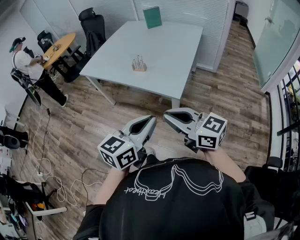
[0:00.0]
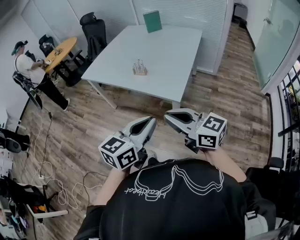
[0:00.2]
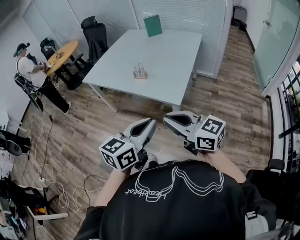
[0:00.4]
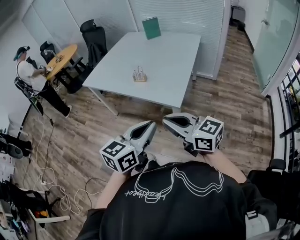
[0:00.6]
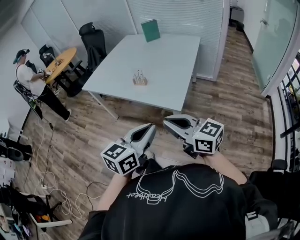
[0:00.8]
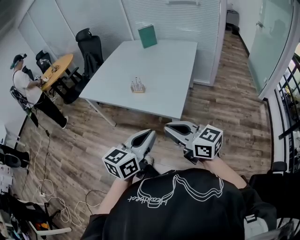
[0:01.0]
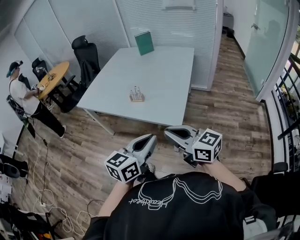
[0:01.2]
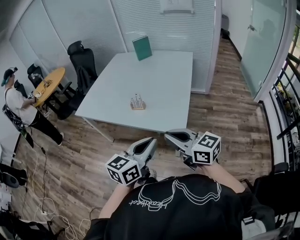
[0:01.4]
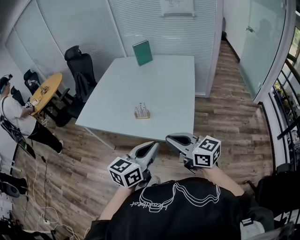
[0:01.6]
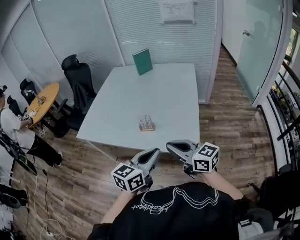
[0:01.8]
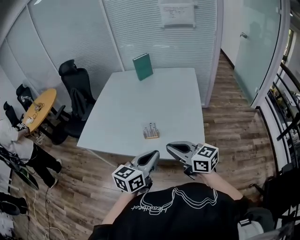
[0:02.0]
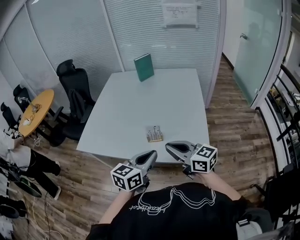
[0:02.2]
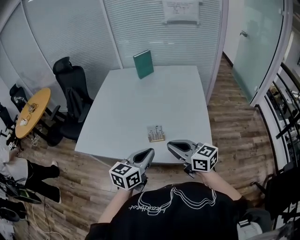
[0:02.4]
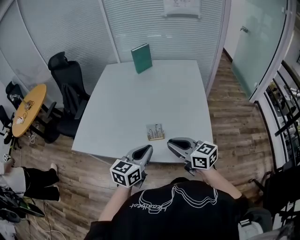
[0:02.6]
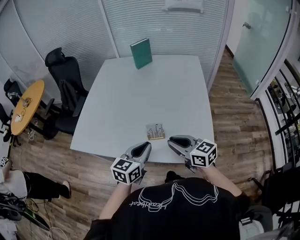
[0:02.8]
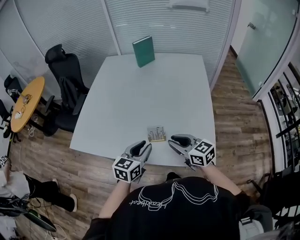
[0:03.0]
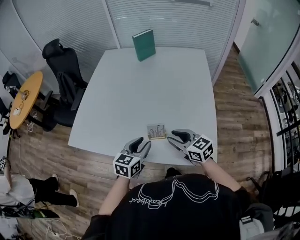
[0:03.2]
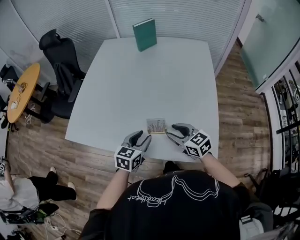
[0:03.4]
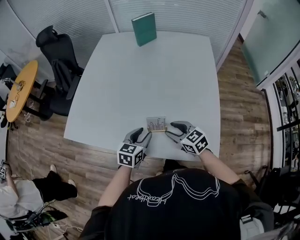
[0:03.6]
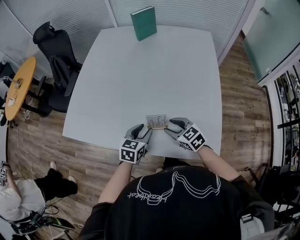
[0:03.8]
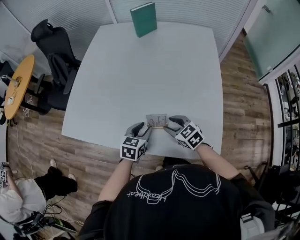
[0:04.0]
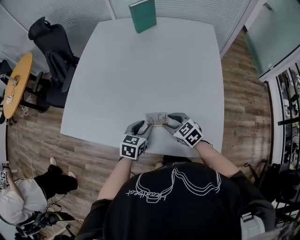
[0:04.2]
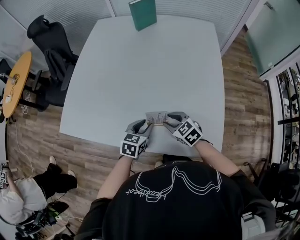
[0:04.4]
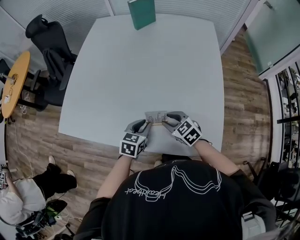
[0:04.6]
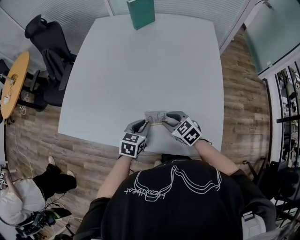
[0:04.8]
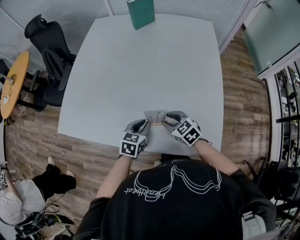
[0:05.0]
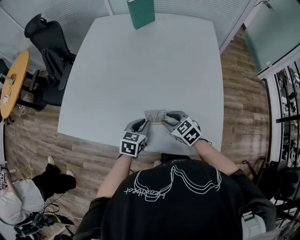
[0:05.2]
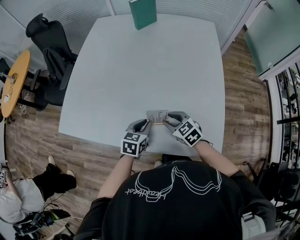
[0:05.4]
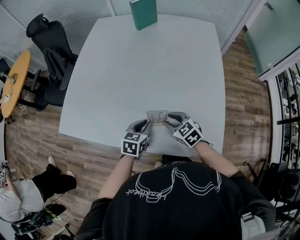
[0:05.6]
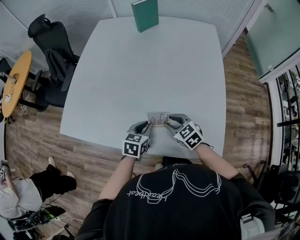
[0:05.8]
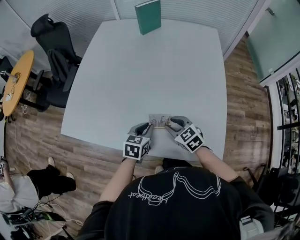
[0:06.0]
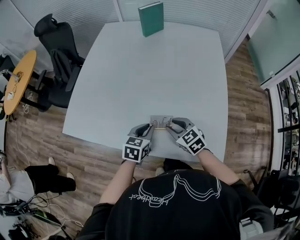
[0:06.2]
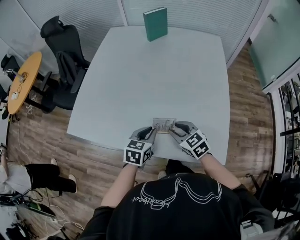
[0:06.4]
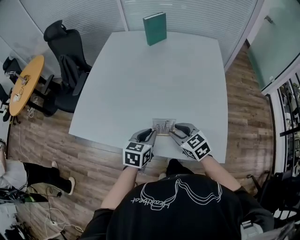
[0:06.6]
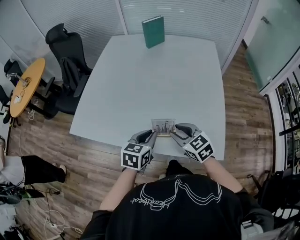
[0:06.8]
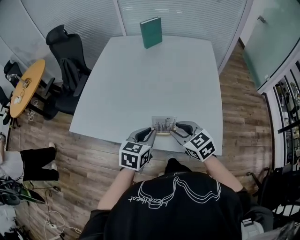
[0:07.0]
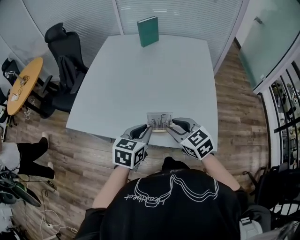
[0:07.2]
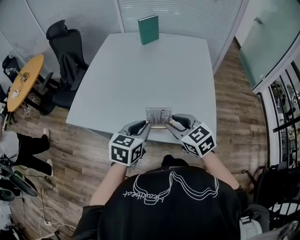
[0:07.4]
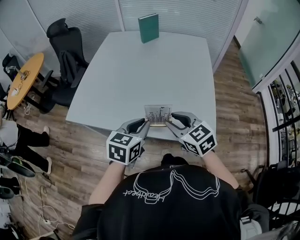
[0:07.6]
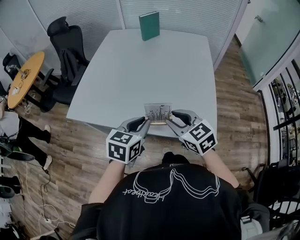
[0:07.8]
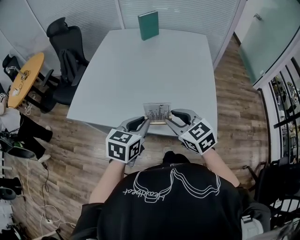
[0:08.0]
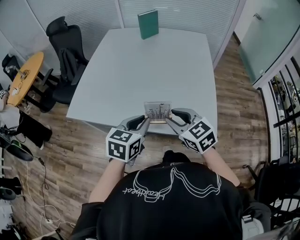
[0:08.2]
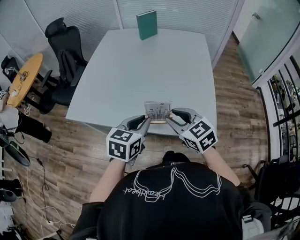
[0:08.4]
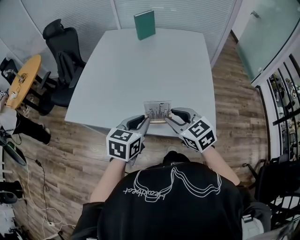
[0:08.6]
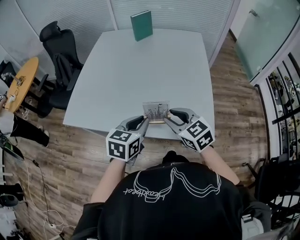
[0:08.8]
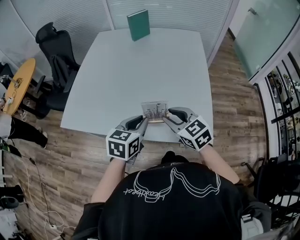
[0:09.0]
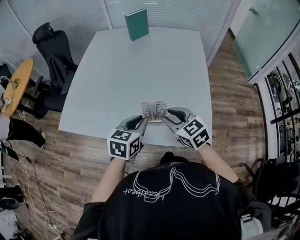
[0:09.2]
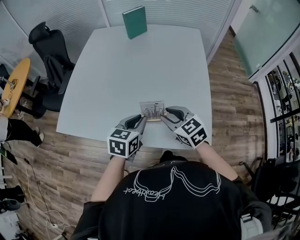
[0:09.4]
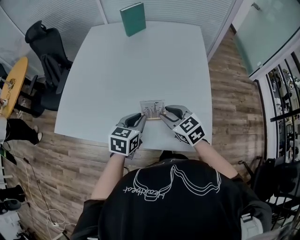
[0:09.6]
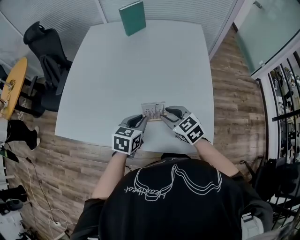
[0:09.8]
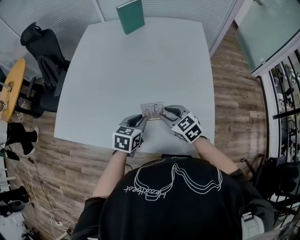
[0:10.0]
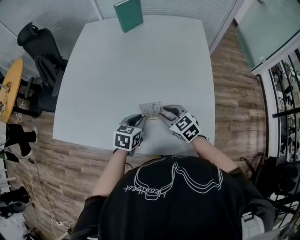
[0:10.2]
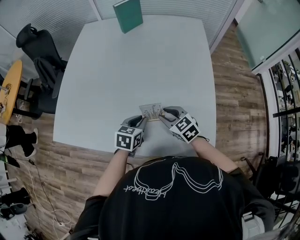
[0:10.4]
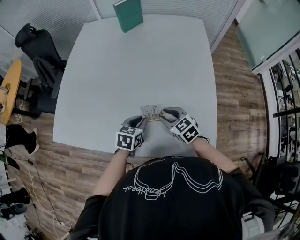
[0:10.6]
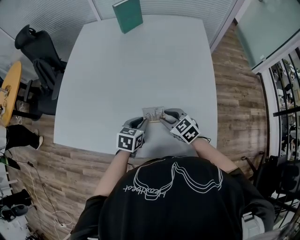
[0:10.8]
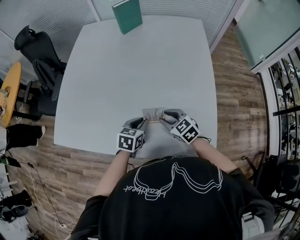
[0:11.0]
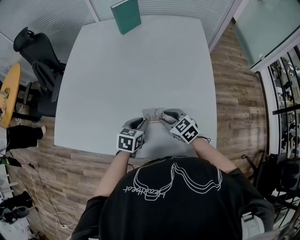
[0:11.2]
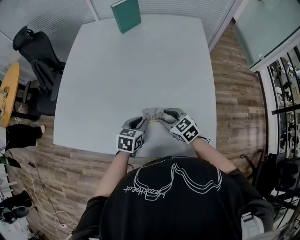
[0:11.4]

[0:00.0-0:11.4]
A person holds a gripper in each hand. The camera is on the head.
0:00.0 to 0:01.4: Both grippers travel together forward, approximately 10 cm.
0:01.4 to 0:02.8: The grippers both shift forward and to the left by some 35 cm.
0:02.8 to 0:04.2: The two grippers go some 20 cm downward and forward. The right gripper turns by about 30 degrees, and opens up. The left gripper changes its angle by approximately 20 degrees, and opens up.
0:04.2 to 0:05.6: The left gripper closes up.
0:05.6 to 0:07.2: The two grippers go some 20 cm upward and backward.
0:07.2 to 0:08.6: The grippers stay close to where they were, moving slightly.
0:08.6 to 0:10.0: Both grippers move forward and downward, approximately 20 cm.
0:10.0 to 0:11.4: The left gripper changes place by some 5 cm. Meanwhile the right gripper moves about 5 cm.

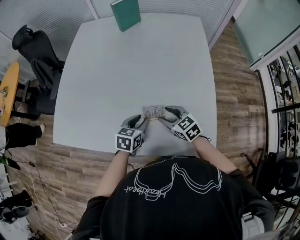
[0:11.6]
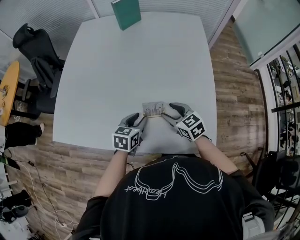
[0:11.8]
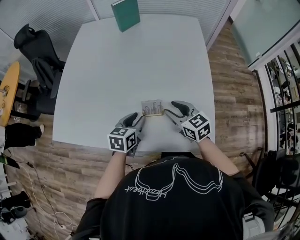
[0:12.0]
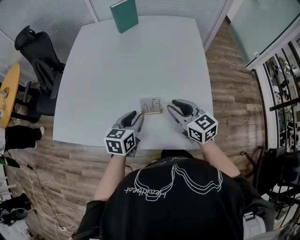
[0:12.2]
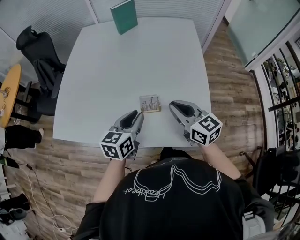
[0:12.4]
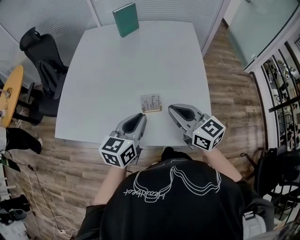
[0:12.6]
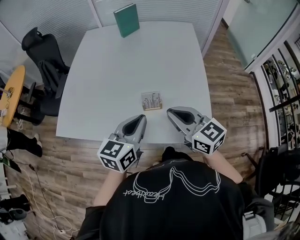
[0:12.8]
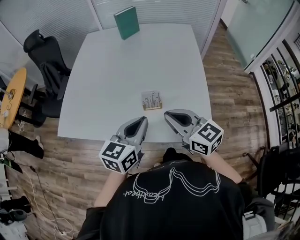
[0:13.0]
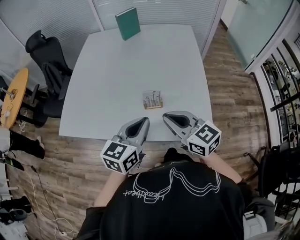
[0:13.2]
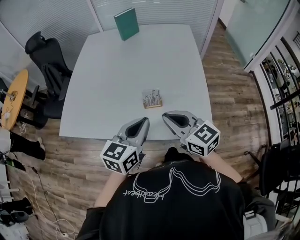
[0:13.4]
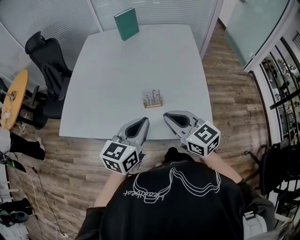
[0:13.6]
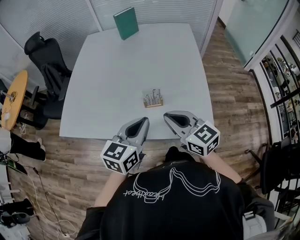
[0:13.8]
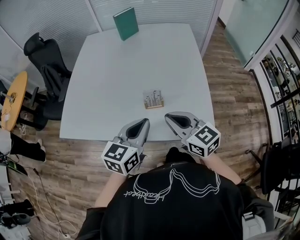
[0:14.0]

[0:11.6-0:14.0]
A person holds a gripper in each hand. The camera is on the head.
0:11.6 to 0:12.8: The grippers both shift upward and backward by about 25 cm. The left gripper swivels about 20 degrees, and closes up, while the right gripper rotates roughly 30 degrees, and closes its fingers.
0:12.8 to 0:14.0: There are only small adjustments of the grippers.

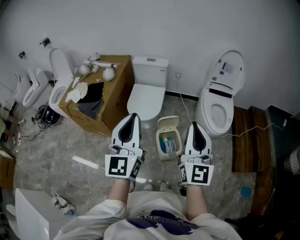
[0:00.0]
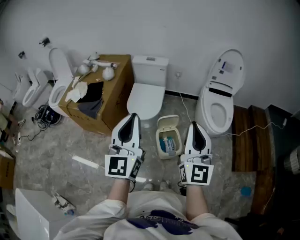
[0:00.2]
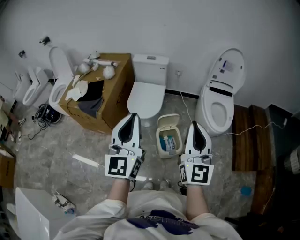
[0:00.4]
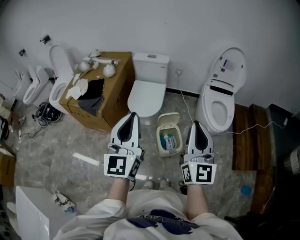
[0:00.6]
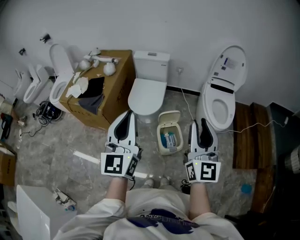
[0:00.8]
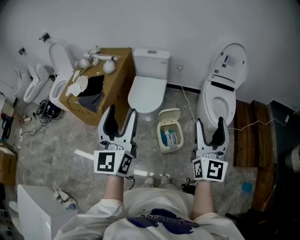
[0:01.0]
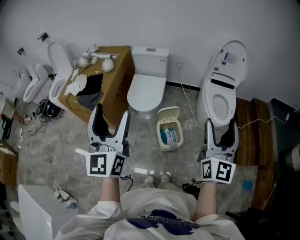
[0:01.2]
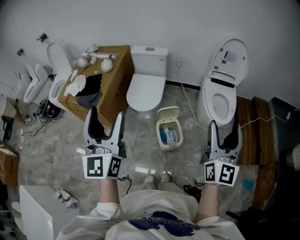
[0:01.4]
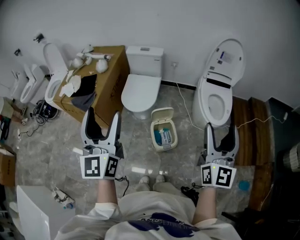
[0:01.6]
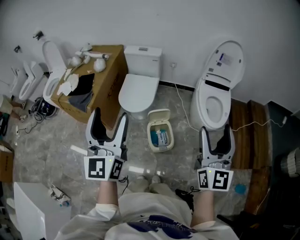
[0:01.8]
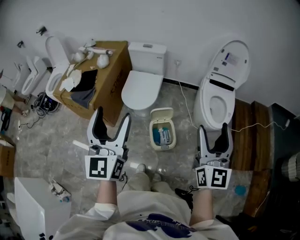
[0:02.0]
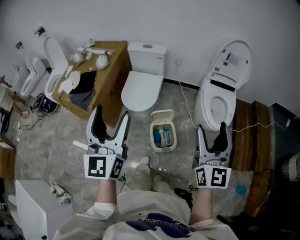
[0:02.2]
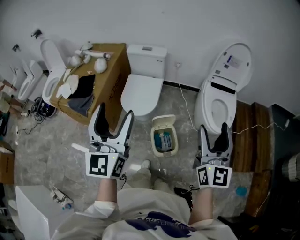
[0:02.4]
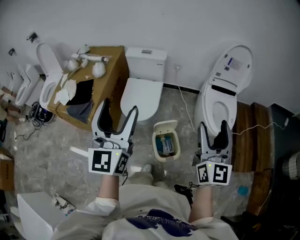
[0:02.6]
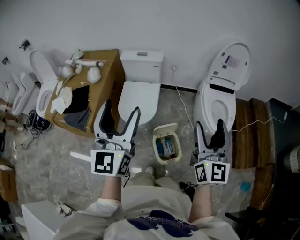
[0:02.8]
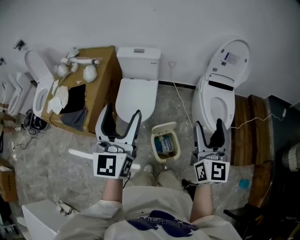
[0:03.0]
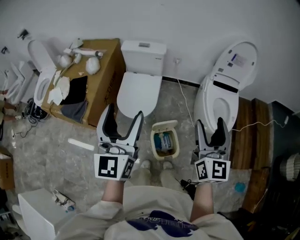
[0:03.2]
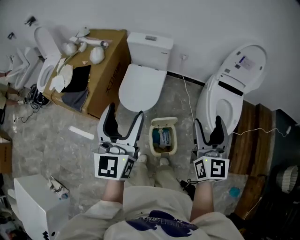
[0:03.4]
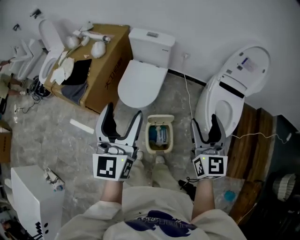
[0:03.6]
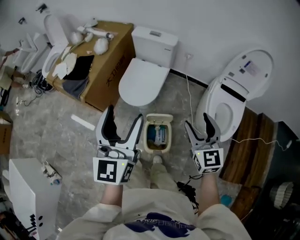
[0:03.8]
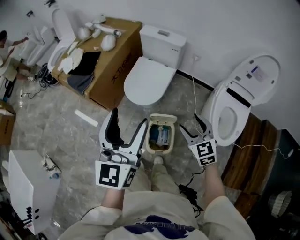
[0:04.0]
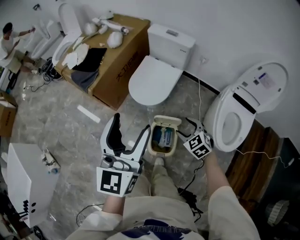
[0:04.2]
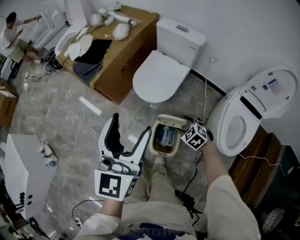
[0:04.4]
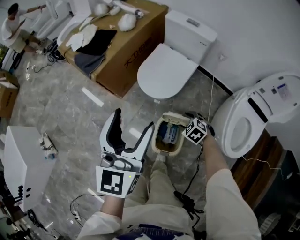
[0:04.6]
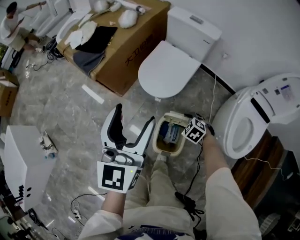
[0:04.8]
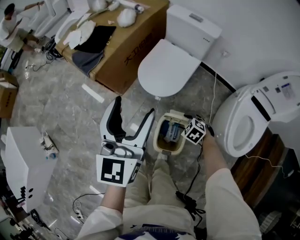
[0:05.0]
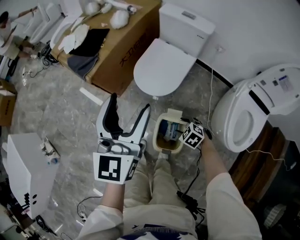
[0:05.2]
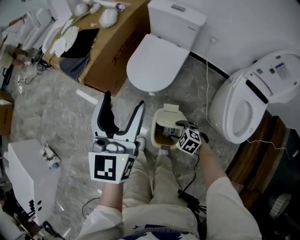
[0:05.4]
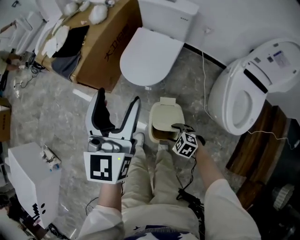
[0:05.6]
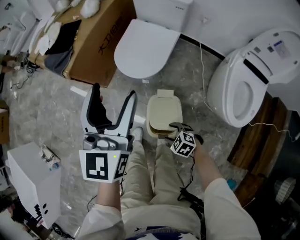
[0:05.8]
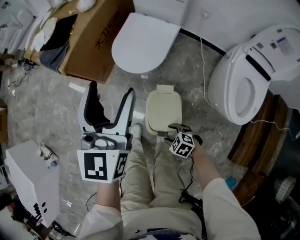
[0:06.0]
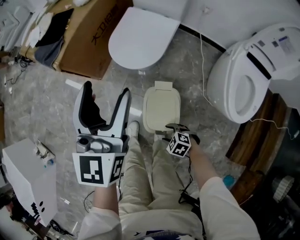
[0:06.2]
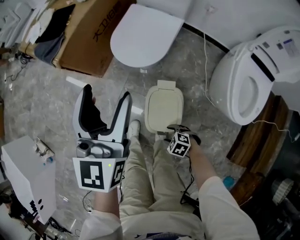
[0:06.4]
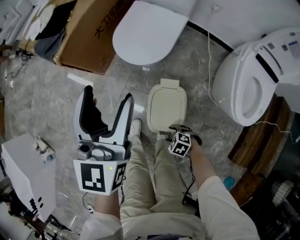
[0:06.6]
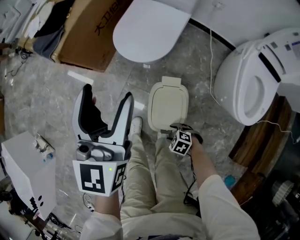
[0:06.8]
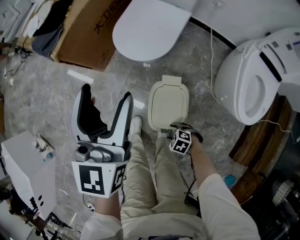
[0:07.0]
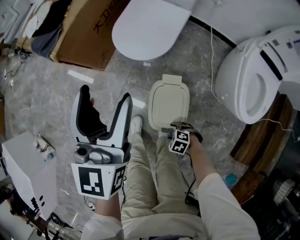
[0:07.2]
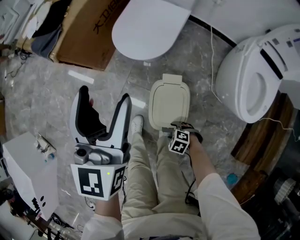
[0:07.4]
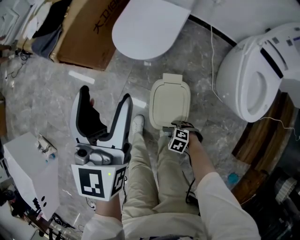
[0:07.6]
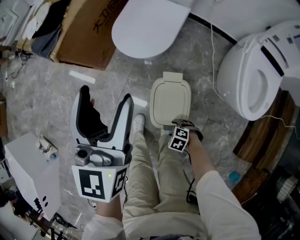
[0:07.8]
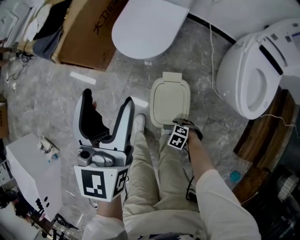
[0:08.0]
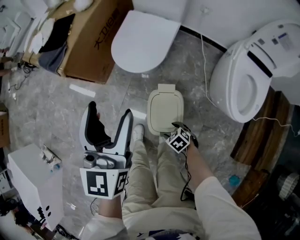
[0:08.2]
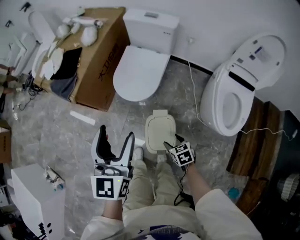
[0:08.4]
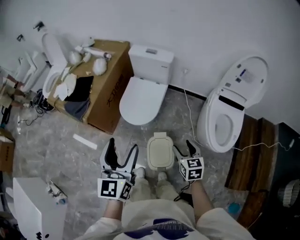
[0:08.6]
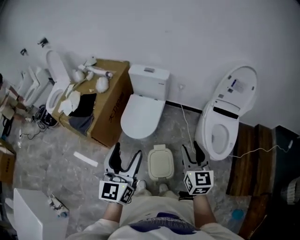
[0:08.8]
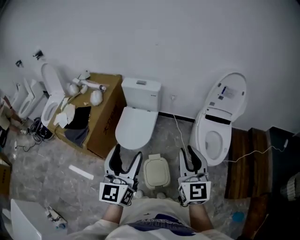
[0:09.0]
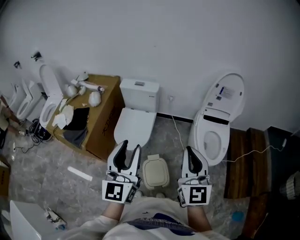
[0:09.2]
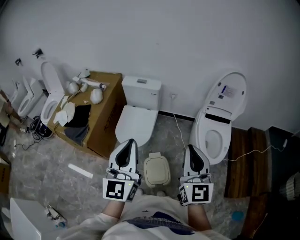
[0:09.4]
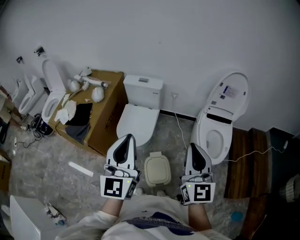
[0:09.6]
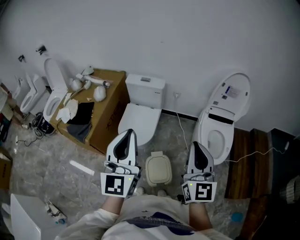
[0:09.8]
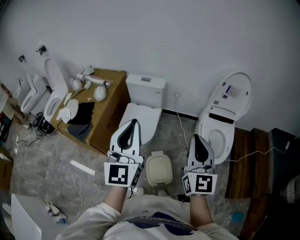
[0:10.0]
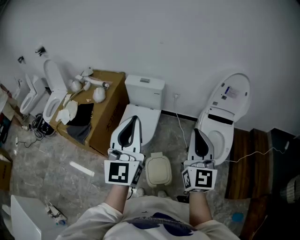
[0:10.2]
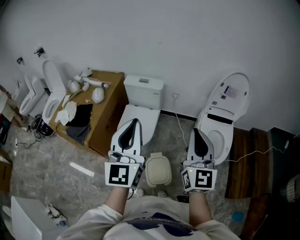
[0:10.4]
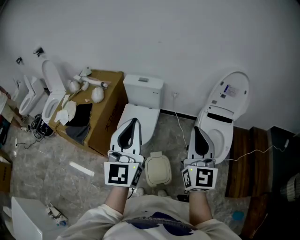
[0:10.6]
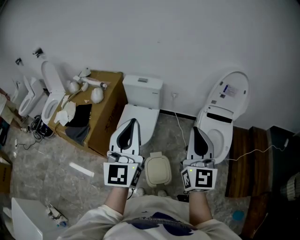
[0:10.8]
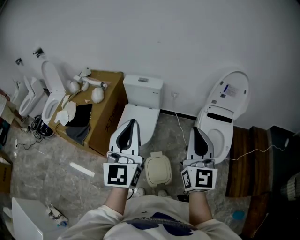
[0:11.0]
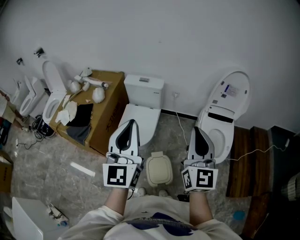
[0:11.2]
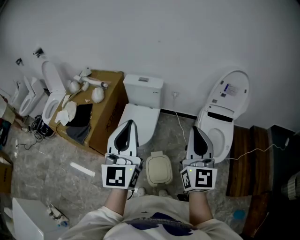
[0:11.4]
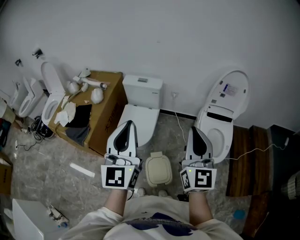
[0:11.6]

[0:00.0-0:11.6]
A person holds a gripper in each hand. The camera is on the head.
0:00.0 to 0:01.4: The right gripper is displaced to the right by about 10 cm, and opens. The left gripper heads to the left, covering about 5 cm, and opens.
0:01.4 to 0:02.8: Both grippers move forward, about 20 cm.
0:02.8 to 0:04.4: The left gripper is displaced downward by some 10 cm, and turns by some 20 degrees. Meanwhile the right gripper heads downward, covering roughly 40 cm, and points its fingers approximately 70 degrees further downward.
0:04.4 to 0:05.8: The left gripper heads downward and forward, covering roughly 10 cm. Meanwhile the right gripper travels downward, backward and to the left by roughly 20 cm.
0:05.8 to 0:07.2: The left gripper is displaced downward by approximately 10 cm. The right gripper heads downward, covering some 15 cm.
0:07.2 to 0:08.8: The right gripper shifts some 60 cm upward, and angles its fingers upward, by approximately 60 degrees; the left gripper shifts approximately 20 cm upward.
0:08.8 to 0:10.2: The left gripper is displaced upward and forward by roughly 15 cm, and closes up; the right gripper is displaced upward by some 15 cm, changes its angle by about 20 degrees, and closes up.
0:10.2 to 0:11.6: The grippers make only small movements.
